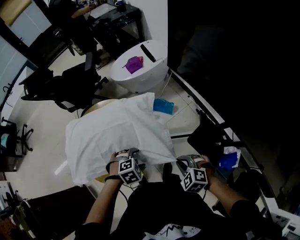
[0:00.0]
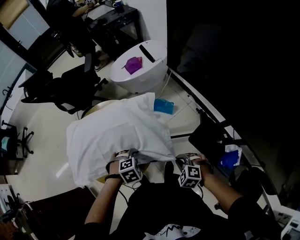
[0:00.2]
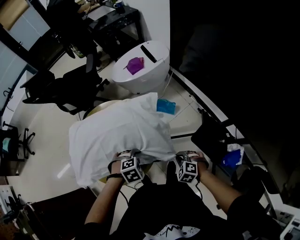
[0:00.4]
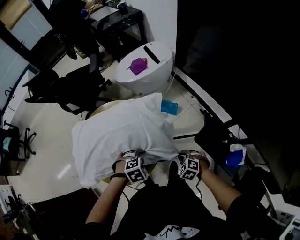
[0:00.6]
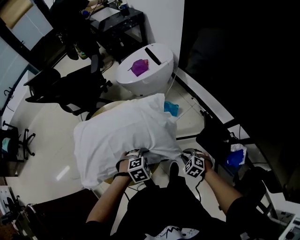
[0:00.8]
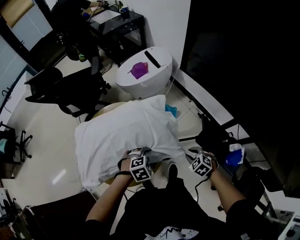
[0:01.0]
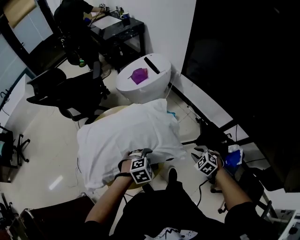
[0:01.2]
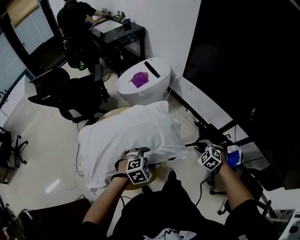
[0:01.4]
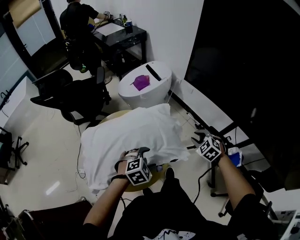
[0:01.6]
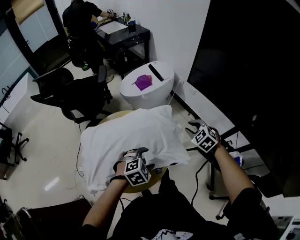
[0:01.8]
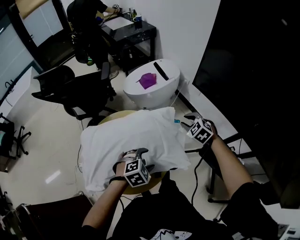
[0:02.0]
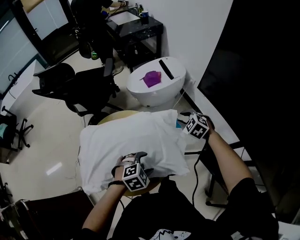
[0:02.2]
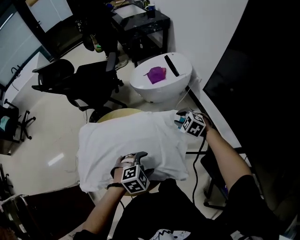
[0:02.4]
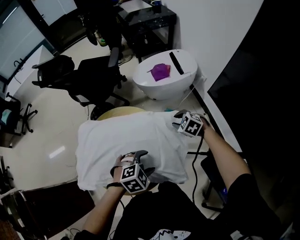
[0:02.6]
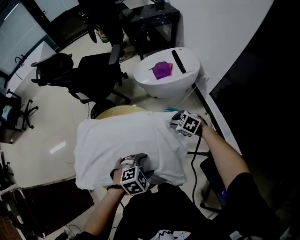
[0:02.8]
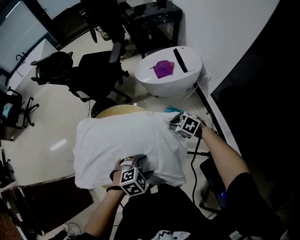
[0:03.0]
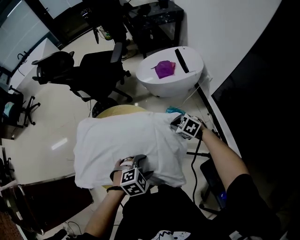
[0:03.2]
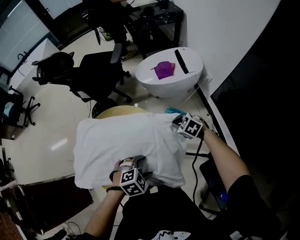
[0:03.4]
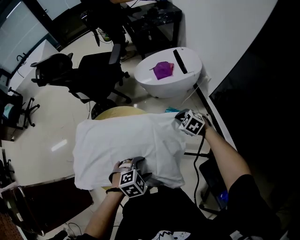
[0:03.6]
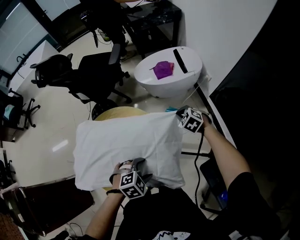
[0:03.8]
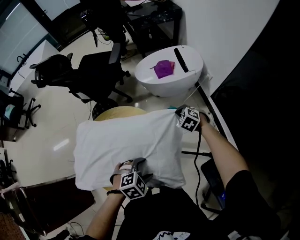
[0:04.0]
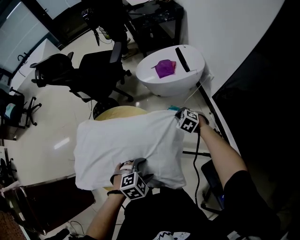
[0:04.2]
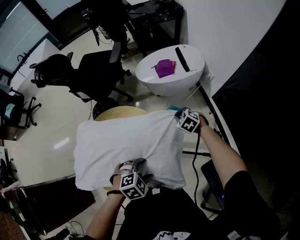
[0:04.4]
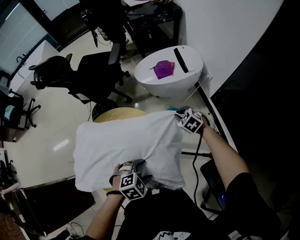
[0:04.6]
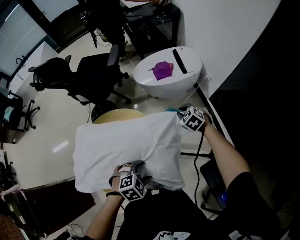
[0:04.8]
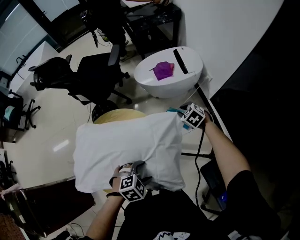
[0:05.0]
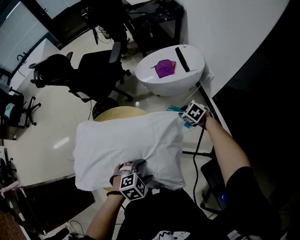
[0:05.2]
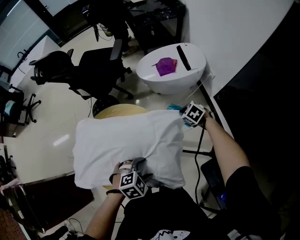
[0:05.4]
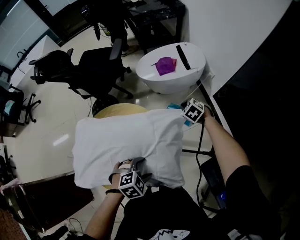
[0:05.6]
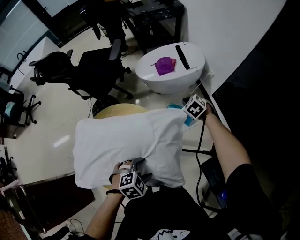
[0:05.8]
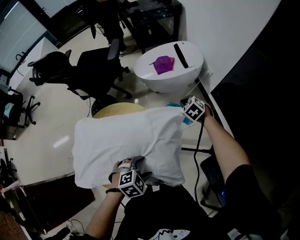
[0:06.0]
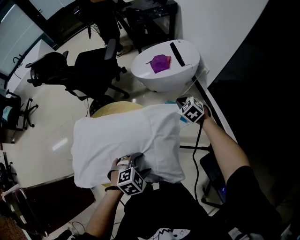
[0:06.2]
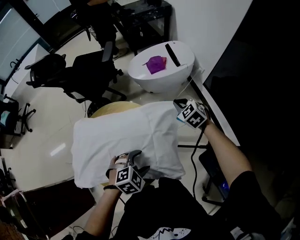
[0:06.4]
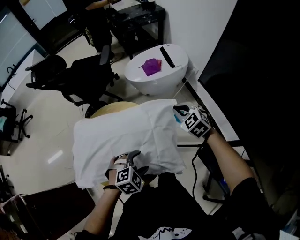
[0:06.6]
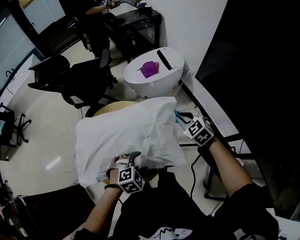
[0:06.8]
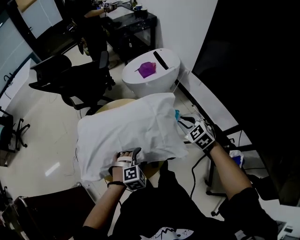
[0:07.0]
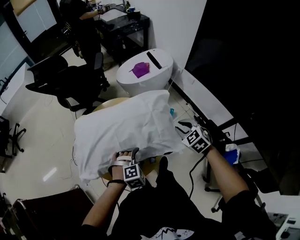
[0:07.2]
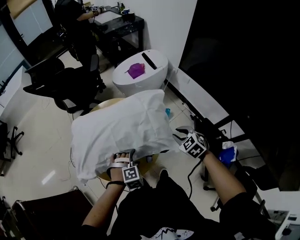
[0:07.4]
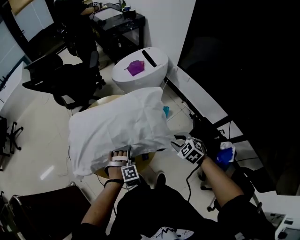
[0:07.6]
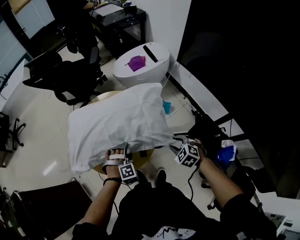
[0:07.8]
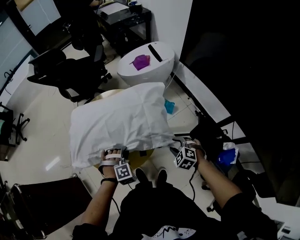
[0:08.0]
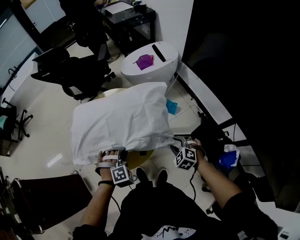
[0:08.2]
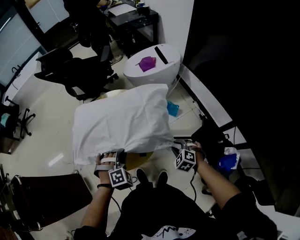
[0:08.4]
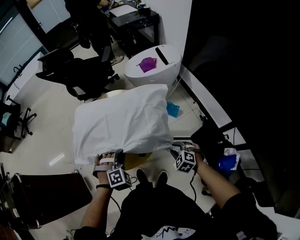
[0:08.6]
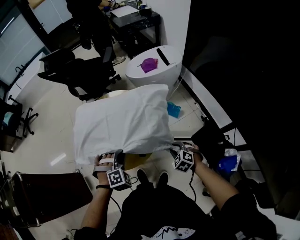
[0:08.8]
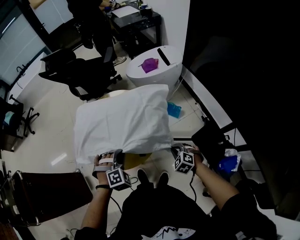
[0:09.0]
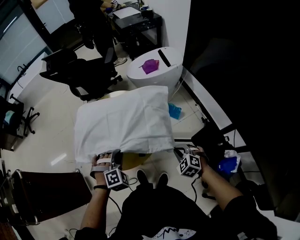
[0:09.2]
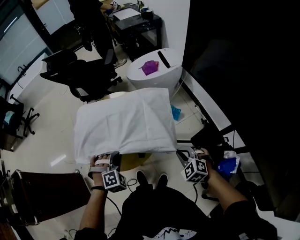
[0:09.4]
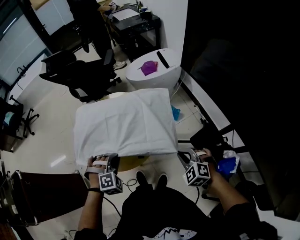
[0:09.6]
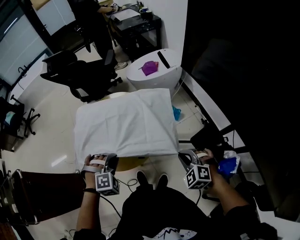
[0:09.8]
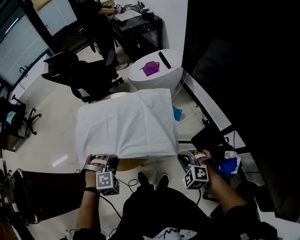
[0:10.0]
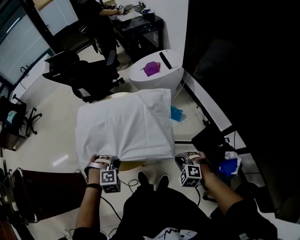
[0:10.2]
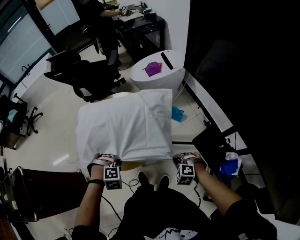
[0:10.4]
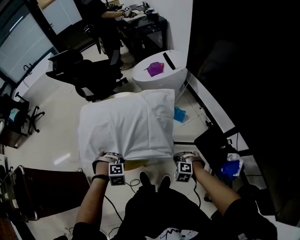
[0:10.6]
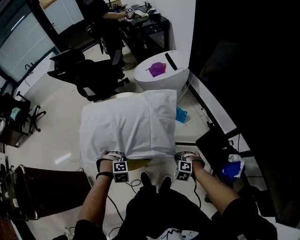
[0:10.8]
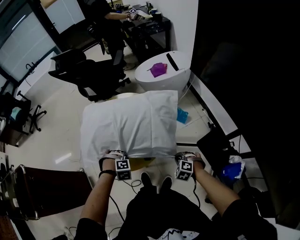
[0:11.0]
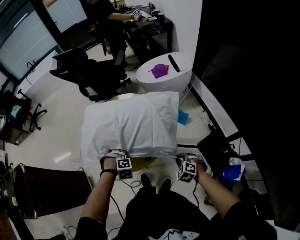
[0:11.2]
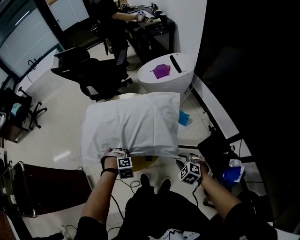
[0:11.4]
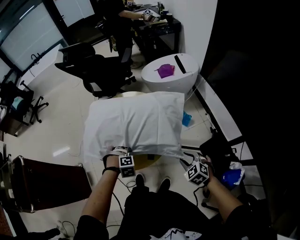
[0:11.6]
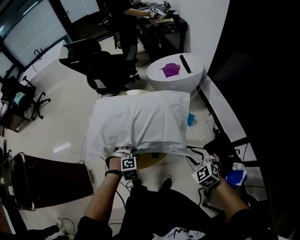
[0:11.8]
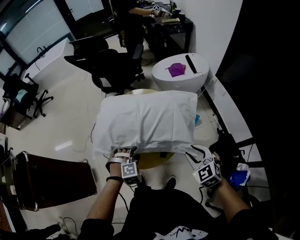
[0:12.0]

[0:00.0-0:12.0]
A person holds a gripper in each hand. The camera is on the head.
0:00.0 to 0:01.6: The left gripper heads upward and to the left, covering roughly 10 cm; the right gripper shifts some 10 cm forward and to the left, goes downward and returns, about 10 cm each way, turns by approximately 20 degrees, and opens up.
0:01.6 to 0:03.0: The right gripper changes place by roughly 30 cm, and turns by roughly 40 degrees. The left gripper moves approximately 10 cm, and turns by roughly 20 degrees.
0:03.0 to 0:04.4: The right gripper ends up approximately 10 cm from where it was.
0:04.4 to 0:06.0: The right gripper shifts by approximately 5 cm, and opens and closes again.
0:06.0 to 0:07.6: The left gripper is displaced backward and to the left by roughly 10 cm, and swivels some 40 degrees. The right gripper is displaced backward by some 40 cm, and opens up.
0:07.6 to 0:09.0: The left gripper goes approximately 10 cm upward, and closes up. The right gripper shifts about 5 cm downward, and closes up.
0:09.0 to 0:10.4: The left gripper ends up roughly 5 cm from where it was, and changes its angle by about 30 degrees. The right gripper travels backward by approximately 5 cm, and reaches approximately 15 cm upward, then returns.
0:10.4 to 0:12.0: The right gripper travels upward by some 15 cm, changes its angle by approximately 30 degrees, and opens its fingers. The left gripper moves about 10 cm downward and comes back, turns by about 20 degrees, and opens.

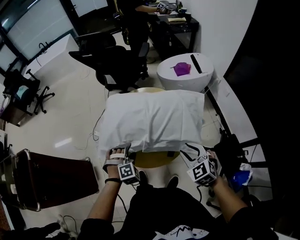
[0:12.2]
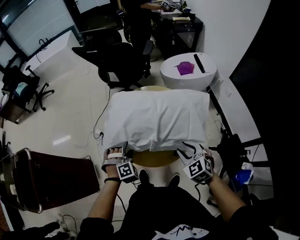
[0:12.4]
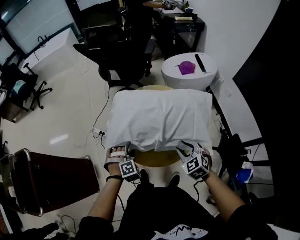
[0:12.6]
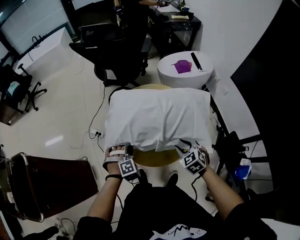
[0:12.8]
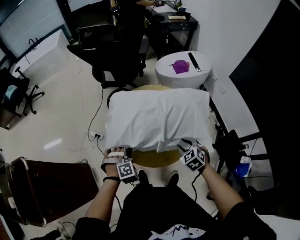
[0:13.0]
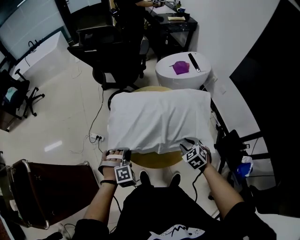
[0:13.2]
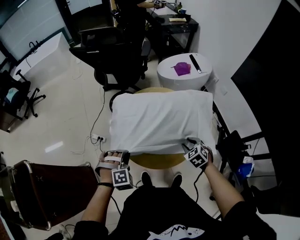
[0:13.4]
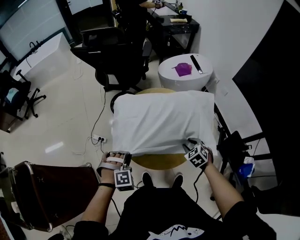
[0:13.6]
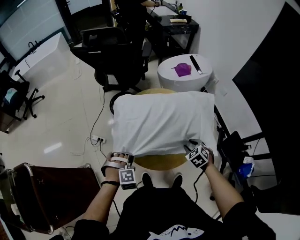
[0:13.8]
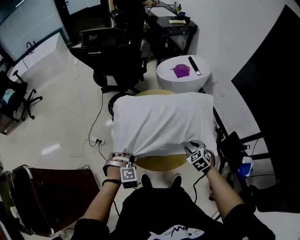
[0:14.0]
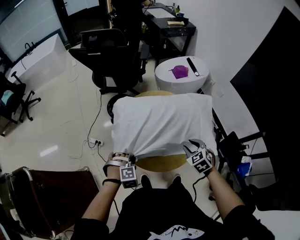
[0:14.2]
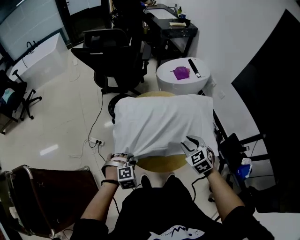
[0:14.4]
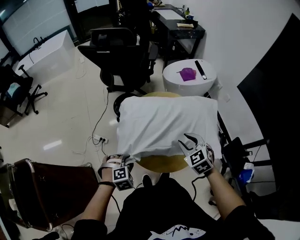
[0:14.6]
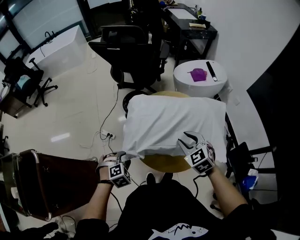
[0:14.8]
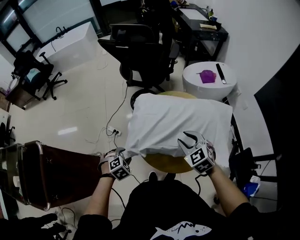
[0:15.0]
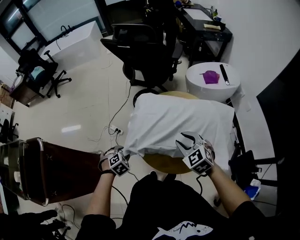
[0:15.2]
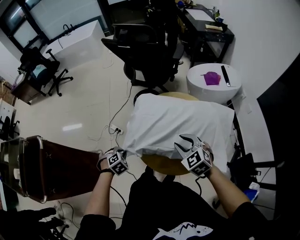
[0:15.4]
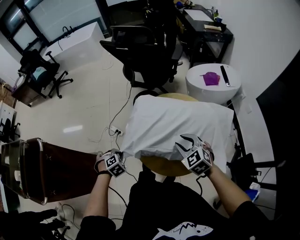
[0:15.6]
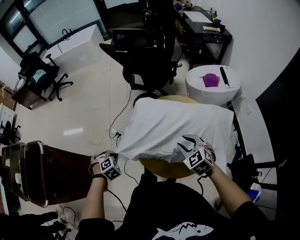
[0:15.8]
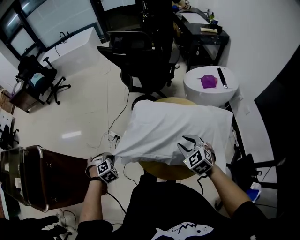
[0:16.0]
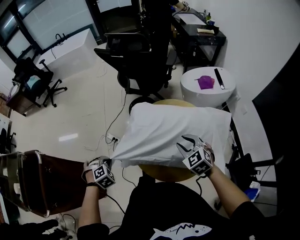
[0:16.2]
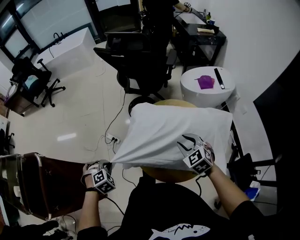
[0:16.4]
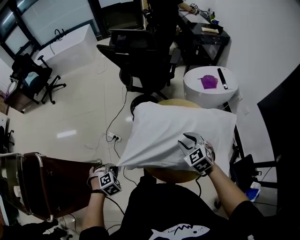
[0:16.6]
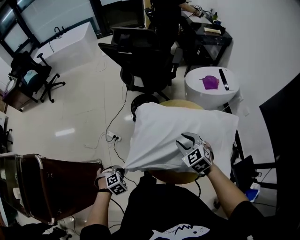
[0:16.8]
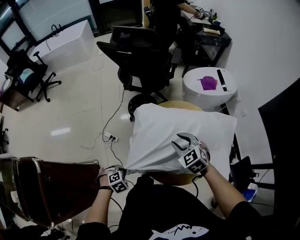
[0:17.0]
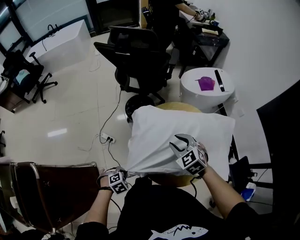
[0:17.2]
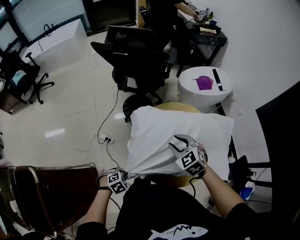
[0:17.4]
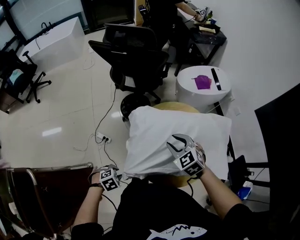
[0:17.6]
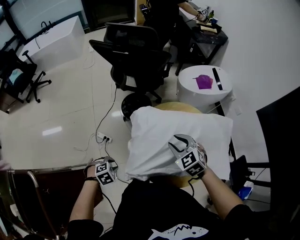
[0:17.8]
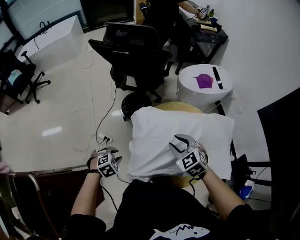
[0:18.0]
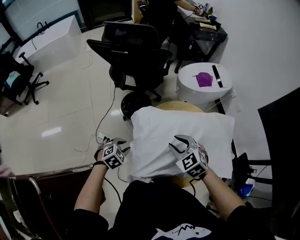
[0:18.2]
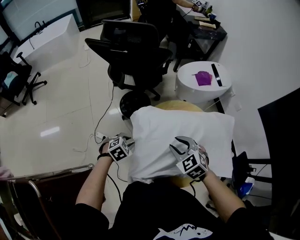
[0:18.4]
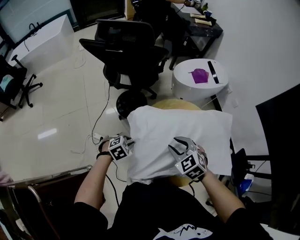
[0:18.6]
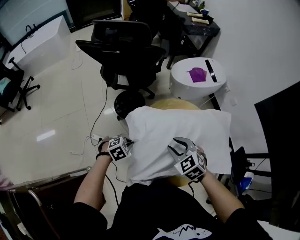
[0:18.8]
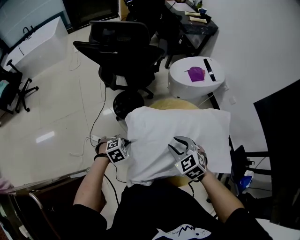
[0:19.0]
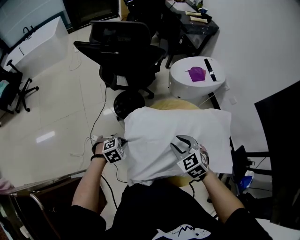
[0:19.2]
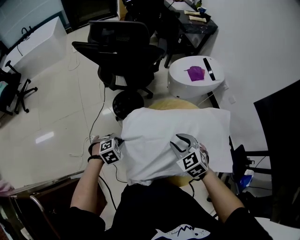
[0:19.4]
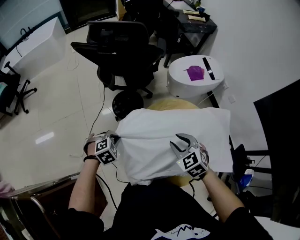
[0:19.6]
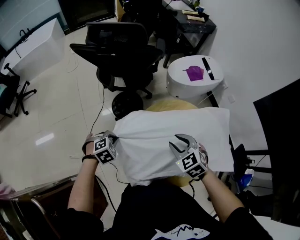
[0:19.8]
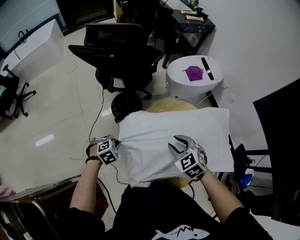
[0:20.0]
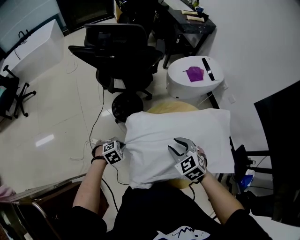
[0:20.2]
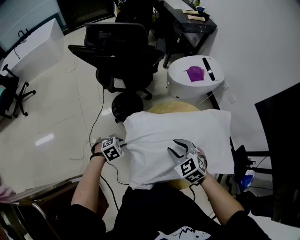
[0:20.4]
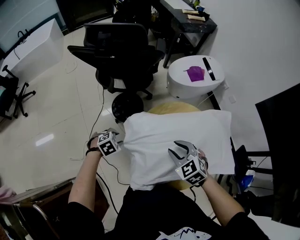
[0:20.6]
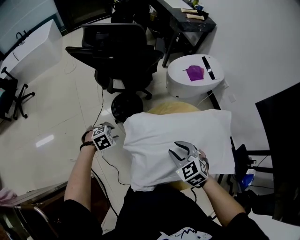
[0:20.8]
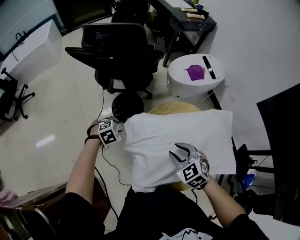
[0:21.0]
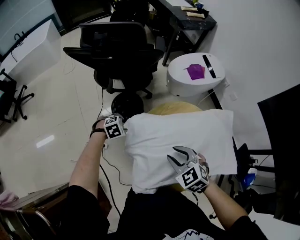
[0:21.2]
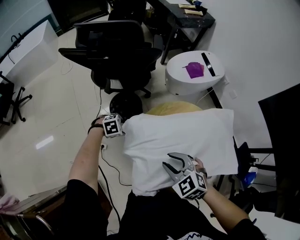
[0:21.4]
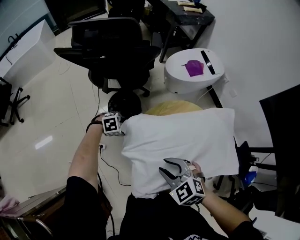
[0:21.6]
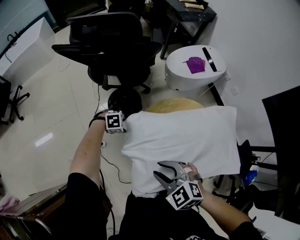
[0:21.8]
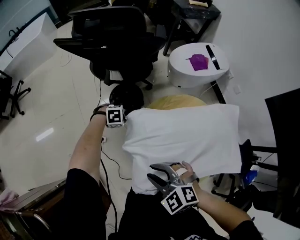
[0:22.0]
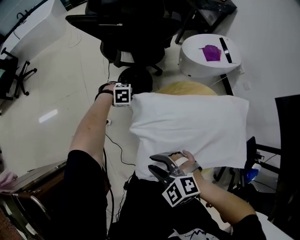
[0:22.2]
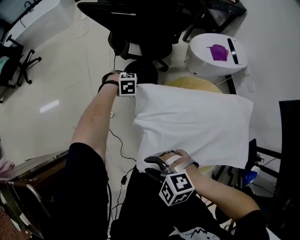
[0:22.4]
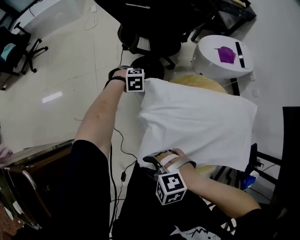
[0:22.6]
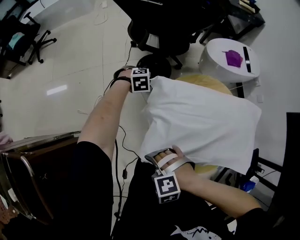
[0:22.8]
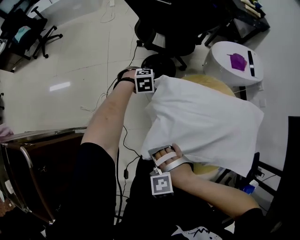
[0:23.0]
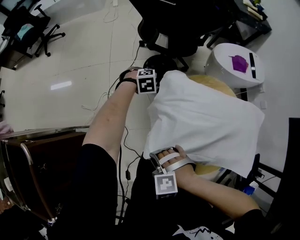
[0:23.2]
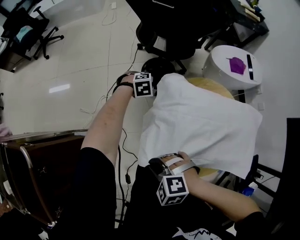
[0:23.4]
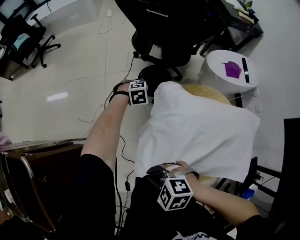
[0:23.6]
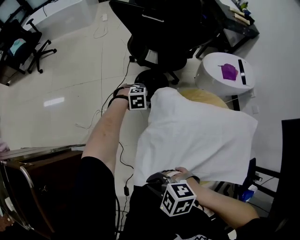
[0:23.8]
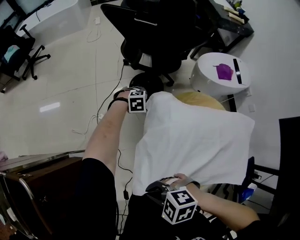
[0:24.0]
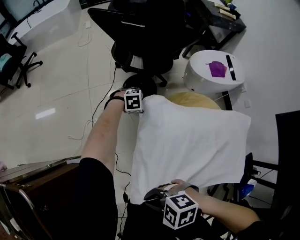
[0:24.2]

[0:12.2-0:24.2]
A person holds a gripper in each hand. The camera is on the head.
0:12.2 to 0:13.8: The left gripper goes approximately 15 cm to the left, and closes up. Meanwhile the right gripper moves downward and to the left, roughly 15 cm, and changes its angle by some 30 degrees.
0:13.8 to 0:15.2: The left gripper shifts by some 10 cm, rolls counterclockwise, seen from behind, by approximately 40 degrees, and opens its fingers; the right gripper ends up roughly 20 cm from where it was, and rotates approximately 30 degrees.
0:15.2 to 0:16.6: The right gripper goes some 5 cm forward, while the left gripper heads to the left, covering some 5 cm, and closes up.
0:16.6 to 0:18.2: The left gripper shifts by some 20 cm, rotates approximately 20 degrees, and opens up, while the right gripper changes place by about 10 cm.
0:18.2 to 0:19.8: The left gripper heads forward, covering some 5 cm, and closes.
0:19.8 to 0:21.2: The left gripper goes approximately 15 cm forward and downward, and opens its fingers.
0:21.2 to 0:22.6: The left gripper closes its fingers, while the right gripper shifts by roughly 25 cm, and swivels roughly 60 degrees.
0:22.6 to 0:24.2: The left gripper opens. Meanwhile the right gripper travels upward by roughly 5 cm, changes its angle by approximately 20 degrees, and closes its fingers.
